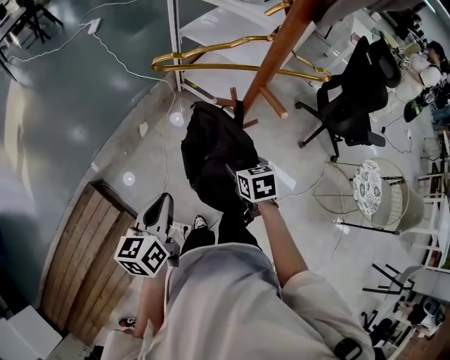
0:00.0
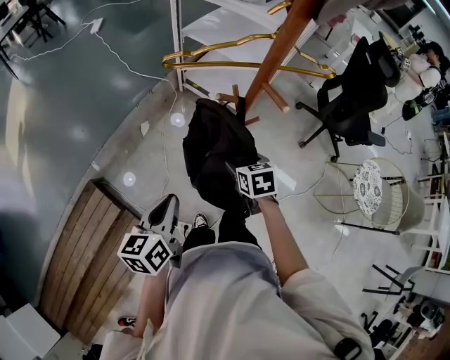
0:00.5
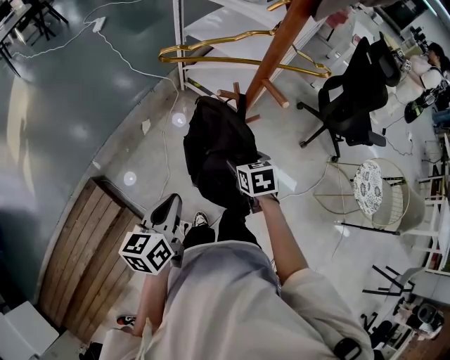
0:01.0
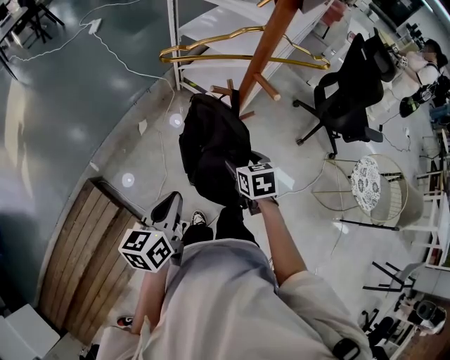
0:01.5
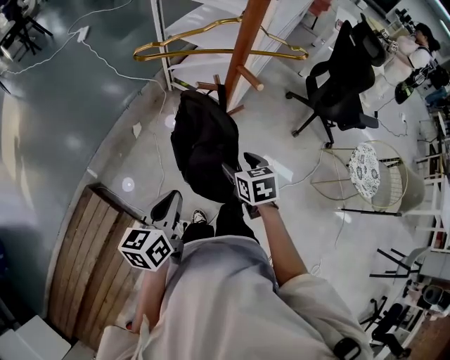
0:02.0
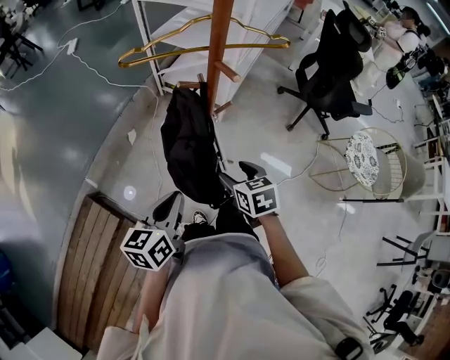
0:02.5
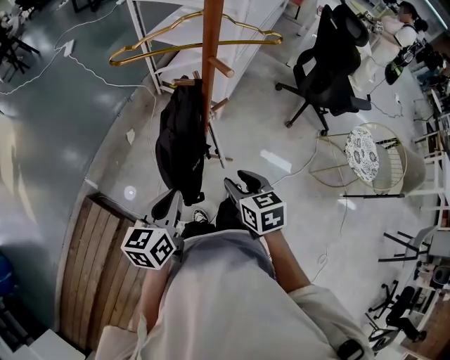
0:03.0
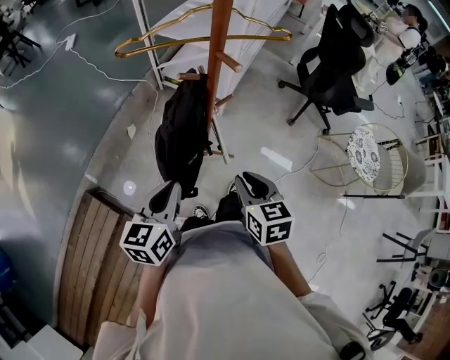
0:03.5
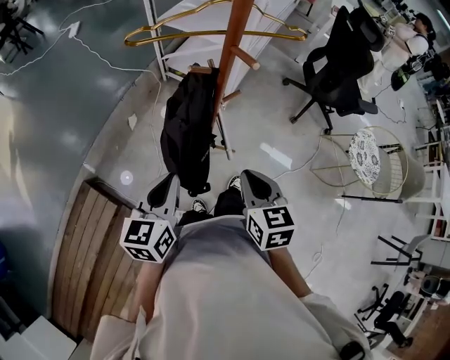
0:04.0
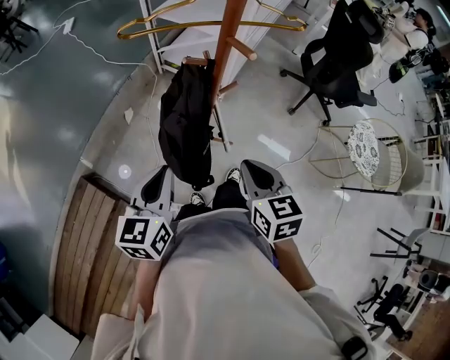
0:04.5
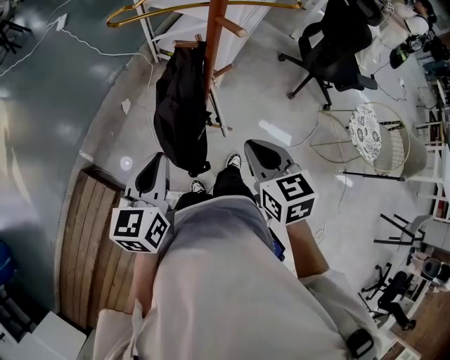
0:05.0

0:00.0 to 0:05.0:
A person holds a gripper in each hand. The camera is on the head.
0:00.0 to 0:02.5: The left gripper travels to the right and backward by roughly 10 cm. Meanwhile the right gripper moves backward, roughly 10 cm.
0:02.5 to 0:05.0: The right gripper is displaced upward by some 10 cm, and closes its fingers.

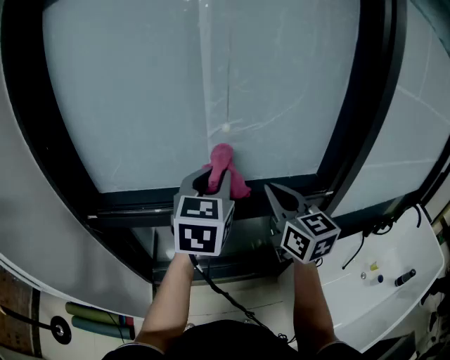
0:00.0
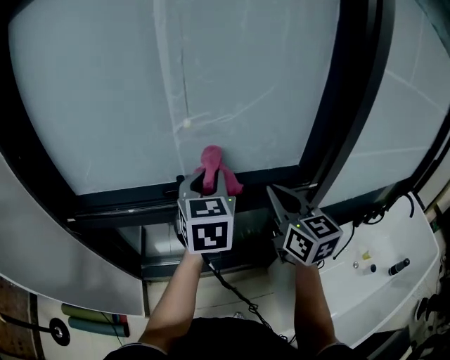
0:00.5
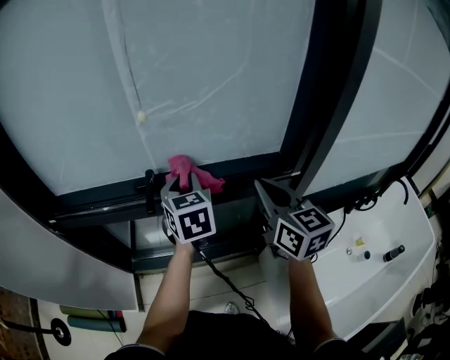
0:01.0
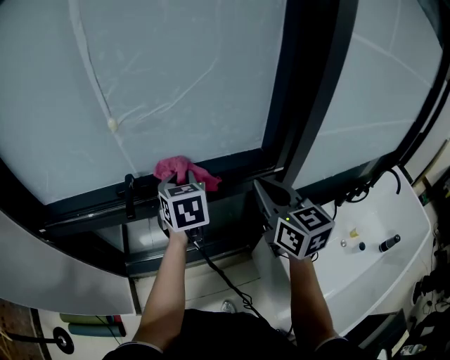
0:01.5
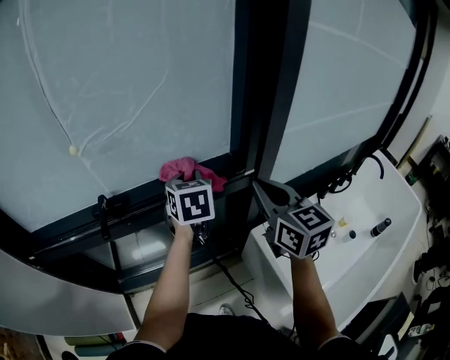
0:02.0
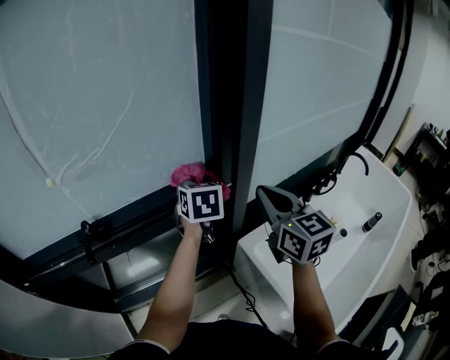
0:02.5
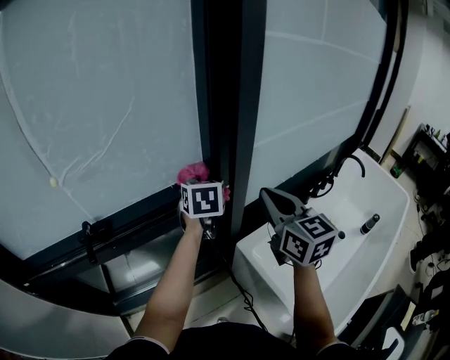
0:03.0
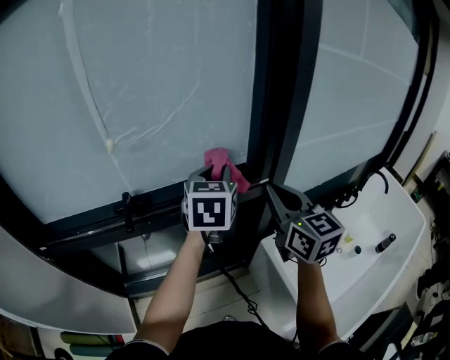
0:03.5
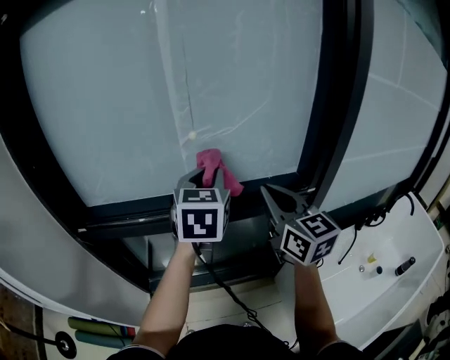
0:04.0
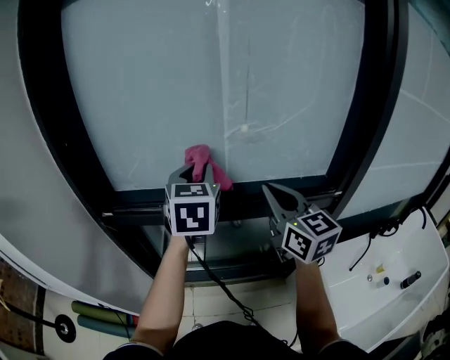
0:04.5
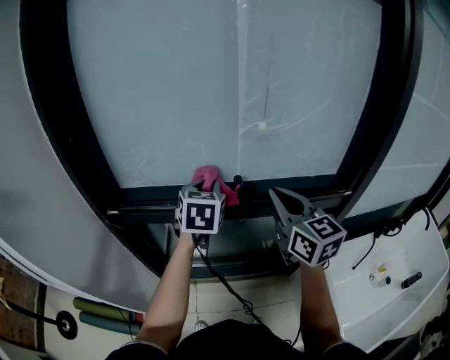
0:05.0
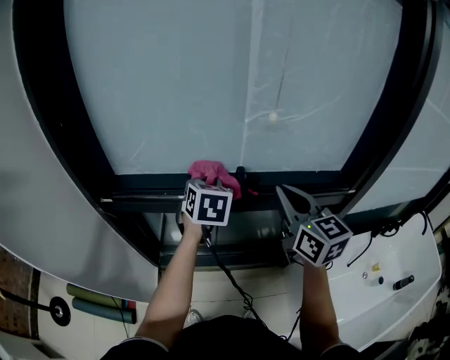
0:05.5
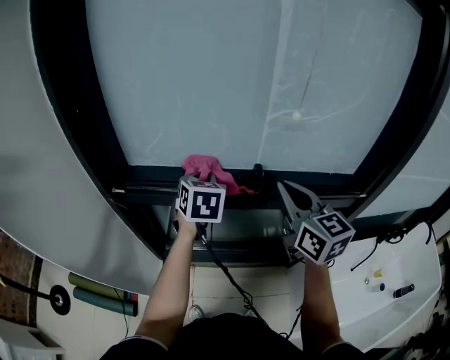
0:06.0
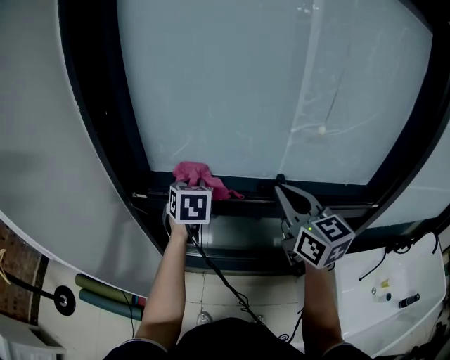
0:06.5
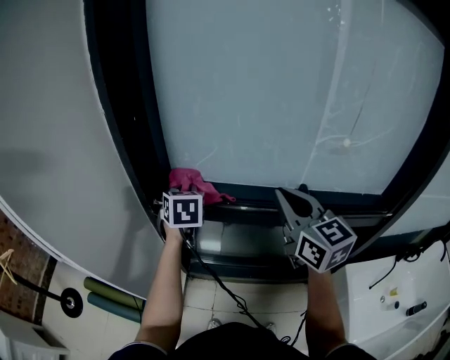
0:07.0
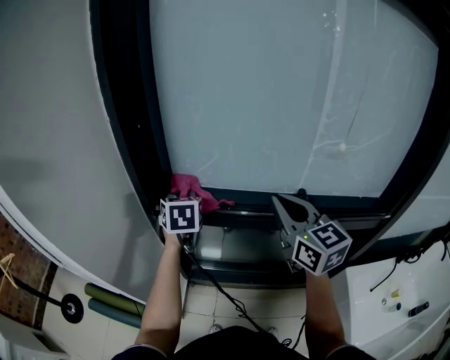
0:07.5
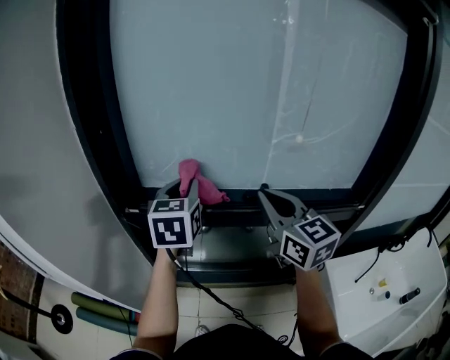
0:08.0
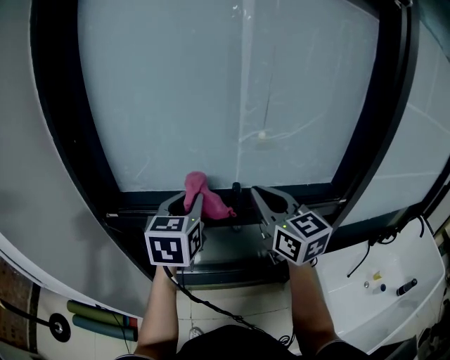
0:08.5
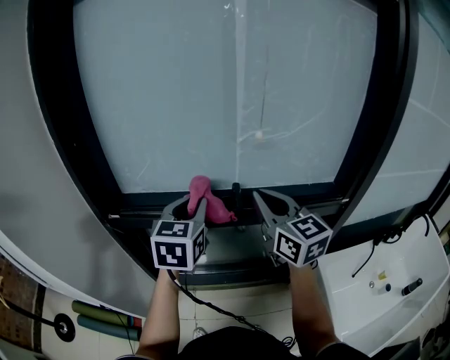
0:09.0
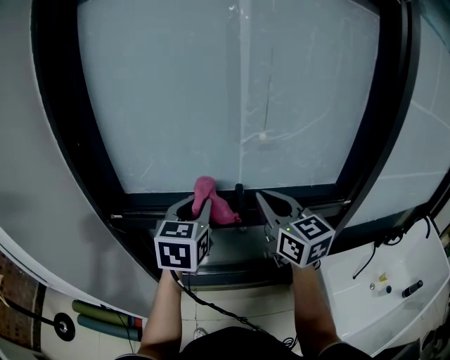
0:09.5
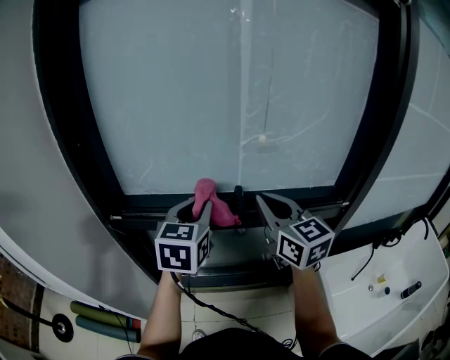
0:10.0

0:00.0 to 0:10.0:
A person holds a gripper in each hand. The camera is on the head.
0:00.0 to 0:02.0: The right gripper heads to the right, covering roughly 25 cm; the left gripper moves to the right and downward, about 25 cm, and turns by some 20 degrees.
0:02.0 to 0:04.0: The left gripper shifts some 25 cm to the left, upward and backward. Meanwhile the right gripper is displaced to the left by approximately 20 cm.
0:04.0 to 0:06.0: The left gripper goes about 25 cm to the left and downward, and changes its angle by roughly 20 degrees. Meanwhile the right gripper goes about 15 cm to the left.
0:06.0 to 0:08.0: The left gripper heads upward and to the left, covering approximately 15 cm. The right gripper travels to the left by roughly 10 cm.
0:08.0 to 0:10.0: The left gripper goes about 10 cm to the right and backward. The right gripper moves to the right, some 5 cm.

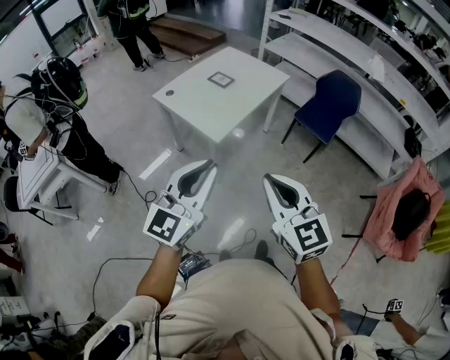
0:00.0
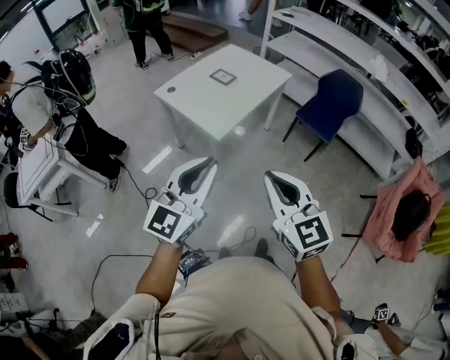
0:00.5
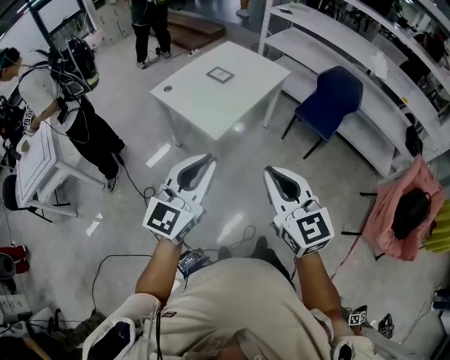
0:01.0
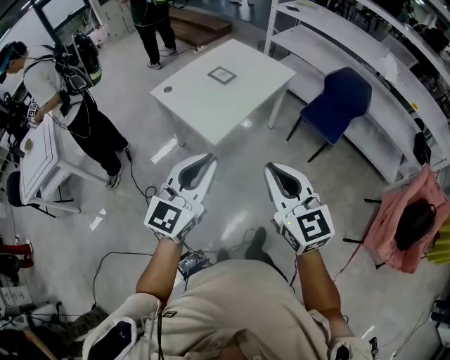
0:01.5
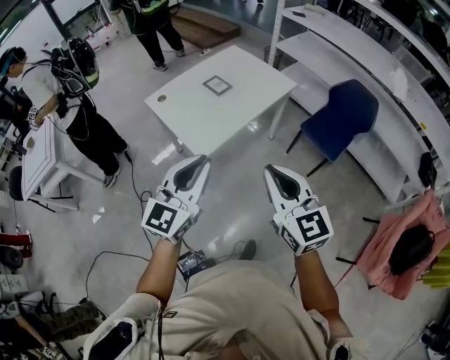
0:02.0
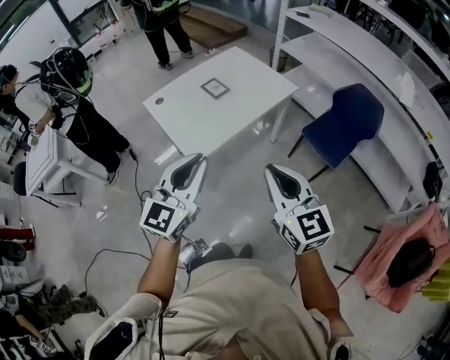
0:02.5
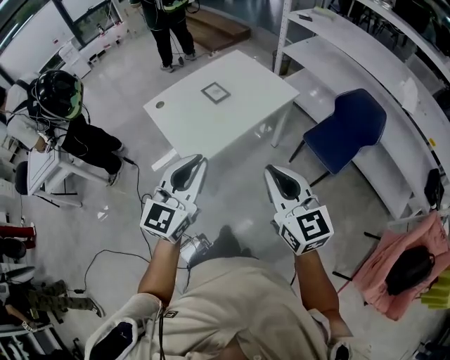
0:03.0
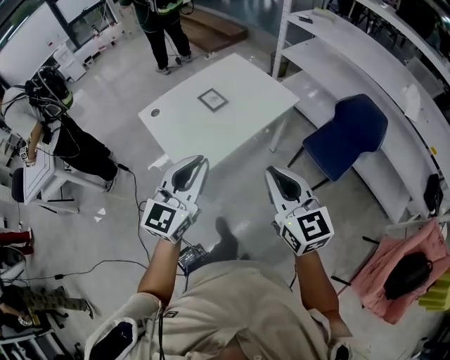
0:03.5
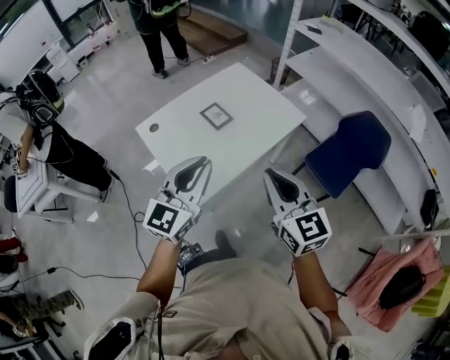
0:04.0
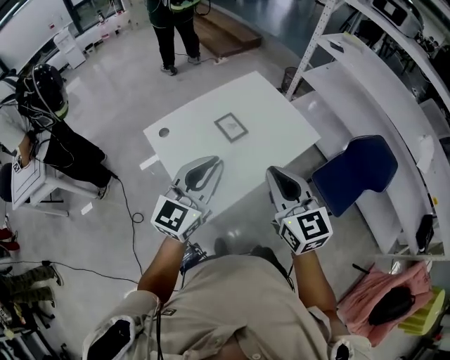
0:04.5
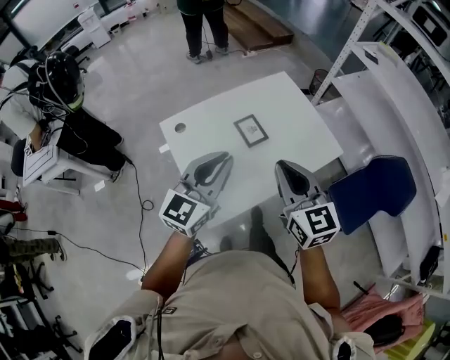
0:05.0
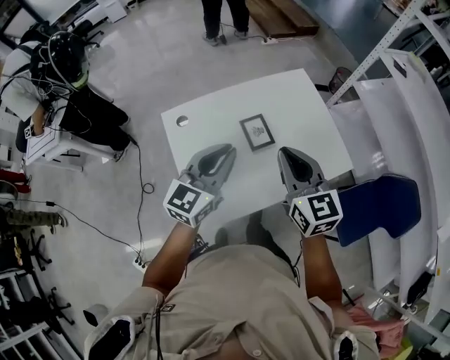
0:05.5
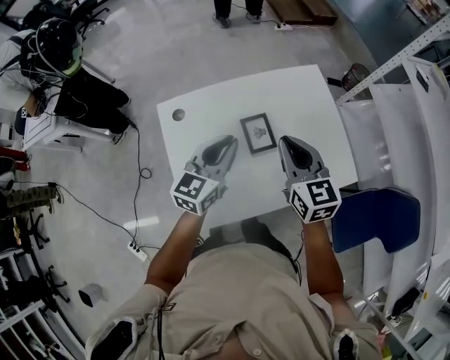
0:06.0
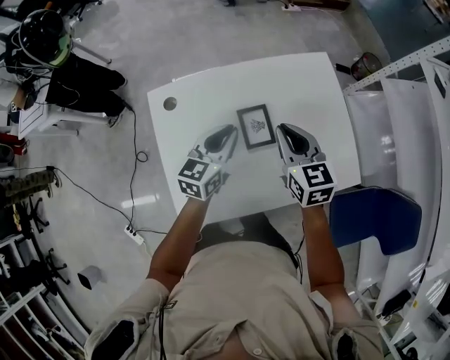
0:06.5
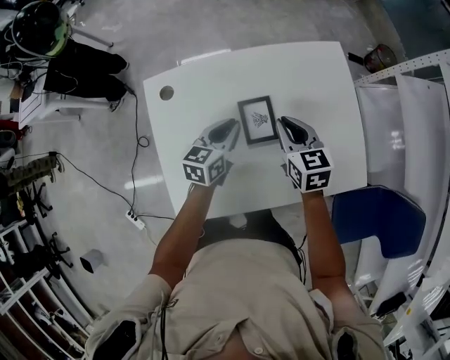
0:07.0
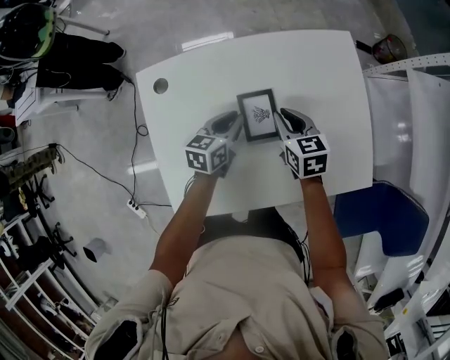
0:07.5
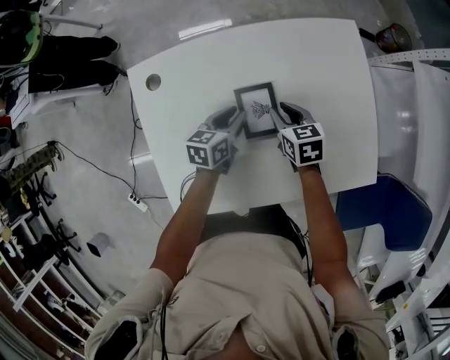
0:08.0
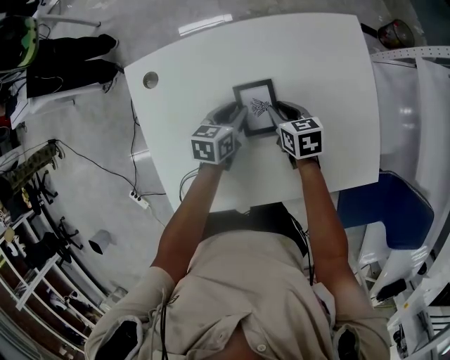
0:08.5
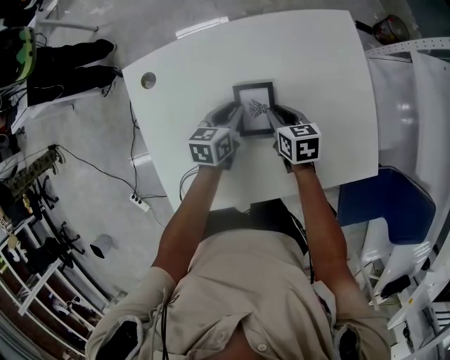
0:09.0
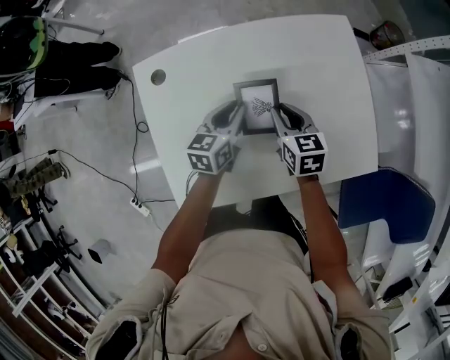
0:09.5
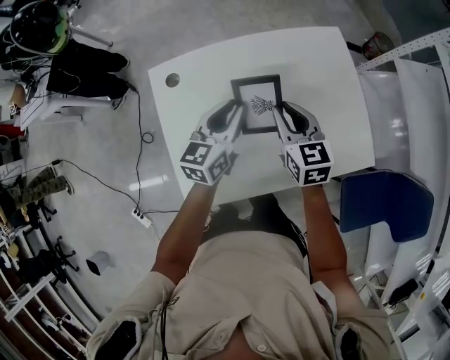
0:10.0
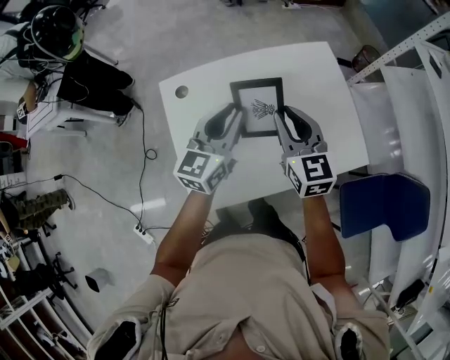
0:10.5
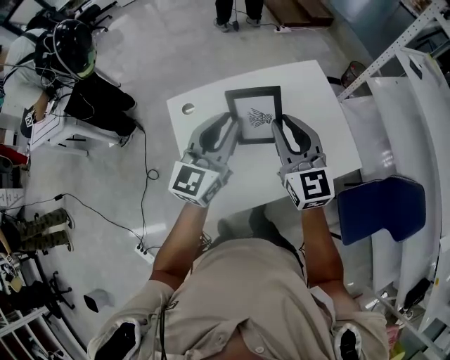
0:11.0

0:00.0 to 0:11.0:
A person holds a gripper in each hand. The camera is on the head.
0:00.0 to 0:02.0: The grippers both shift forward and to the right by some 25 cm.
0:02.0 to 0:03.5: Both grippers travel together forward and to the right, about 15 cm.
0:03.5 to 0:05.5: Both grippers are carried forward, some 40 cm.
0:05.5 to 0:07.5: Both grippers move downward and forward, about 40 cm. The left gripper swivels about 40 degrees; the right gripper changes its angle by roughly 30 degrees.
0:07.5 to 0:09.0: The left gripper shifts by roughly 5 cm, while the right gripper moves downward, roughly 10 cm.
0:09.0 to 0:11.0: Both grippers move upward, some 40 cm. The left gripper angles its fingers upward, by roughly 40 degrees. The right gripper points its fingers approximately 40 degrees further upward.

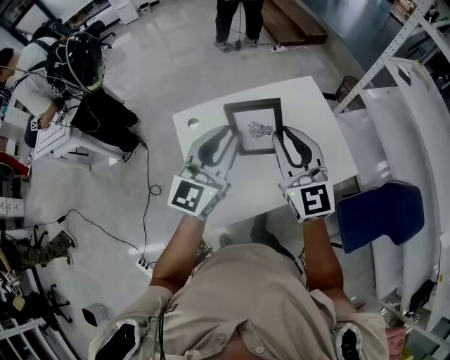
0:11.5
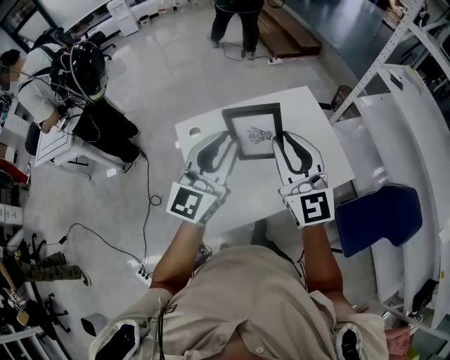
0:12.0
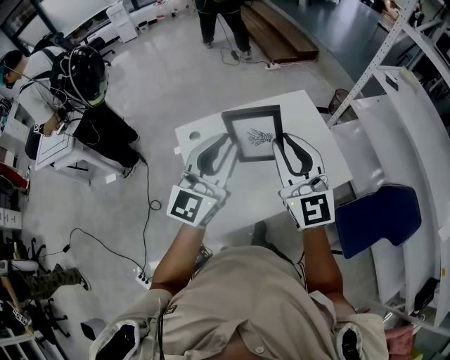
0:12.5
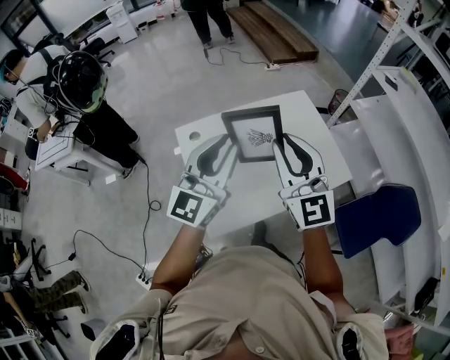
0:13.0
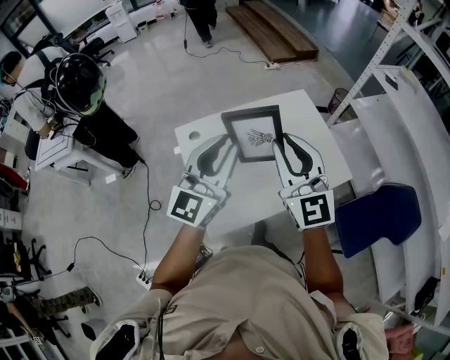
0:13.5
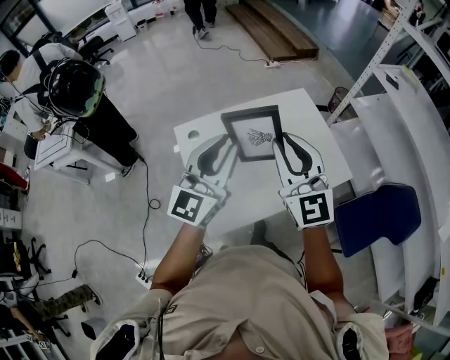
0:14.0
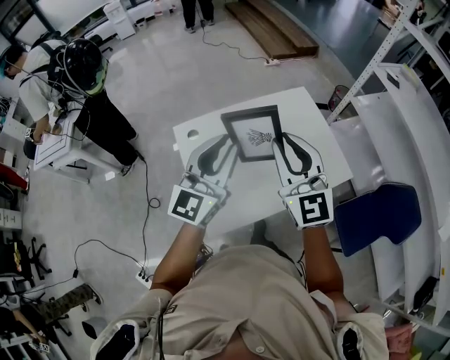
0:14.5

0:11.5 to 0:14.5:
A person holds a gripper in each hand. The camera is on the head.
0:11.5 to 0:13.0: The grippers both shift upward by approximately 5 cm.
0:13.0 to 0:14.5: The grippers make only small movements.
